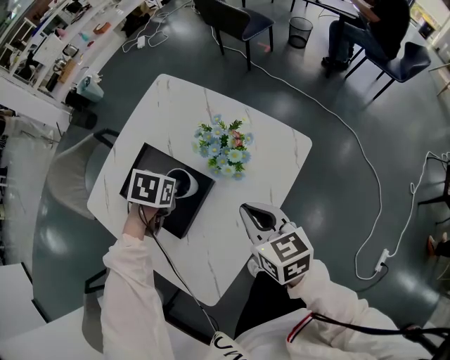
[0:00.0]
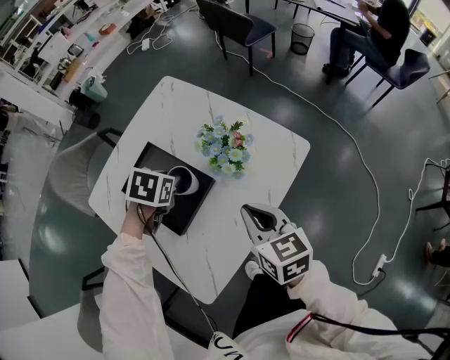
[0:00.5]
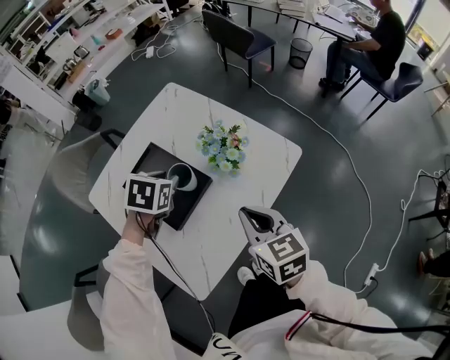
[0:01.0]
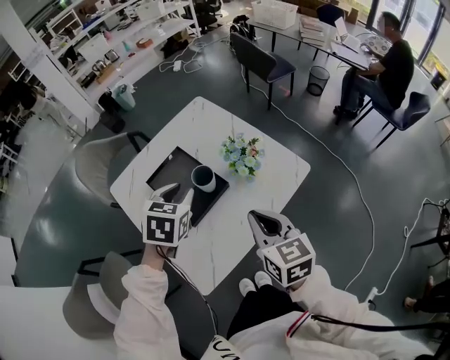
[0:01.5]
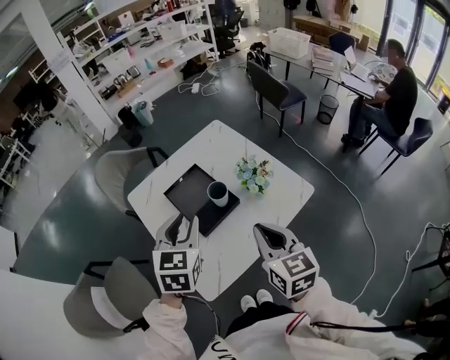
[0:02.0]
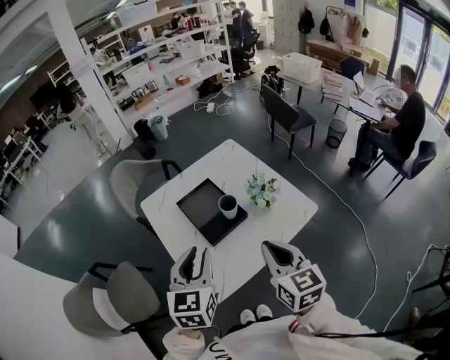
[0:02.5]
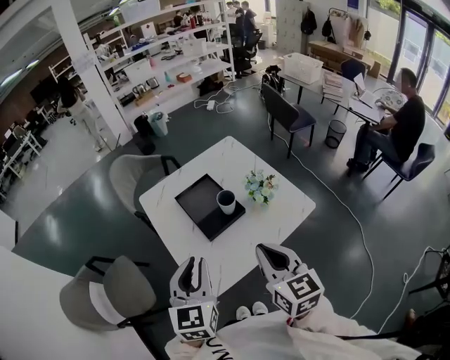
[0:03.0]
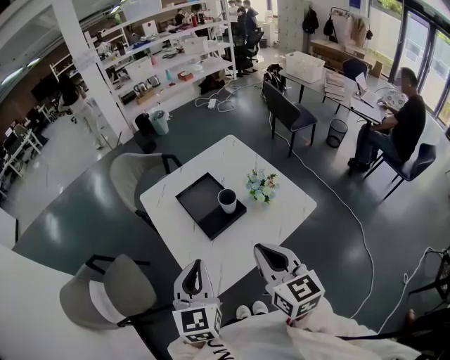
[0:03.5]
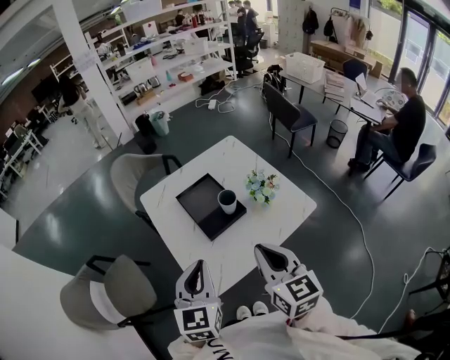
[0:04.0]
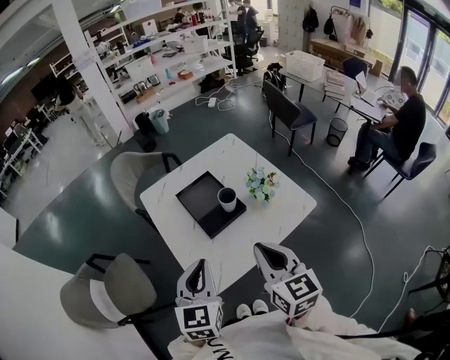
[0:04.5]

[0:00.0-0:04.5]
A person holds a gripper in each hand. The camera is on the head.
0:00.0 to 0:02.0: The left gripper heads upward and backward, covering roughly 30 cm, and angles its fingers upward, by approximately 50 degrees, while the right gripper is displaced upward and backward by roughly 20 cm.
0:02.0 to 0:04.5: The left gripper goes some 15 cm backward, and closes its fingers. Meanwhile the right gripper shifts about 5 cm backward.

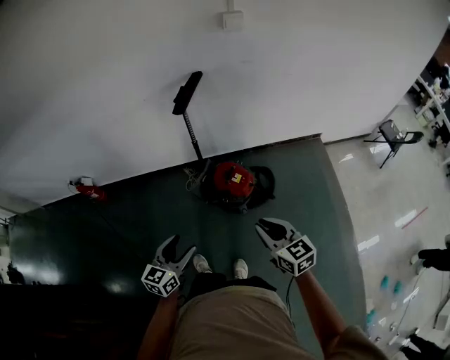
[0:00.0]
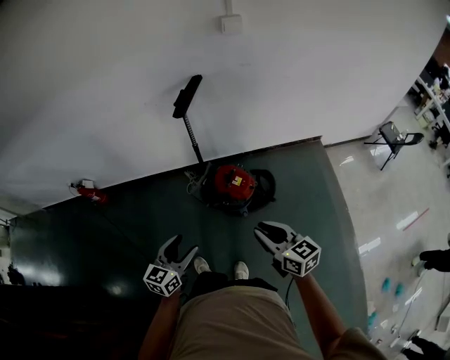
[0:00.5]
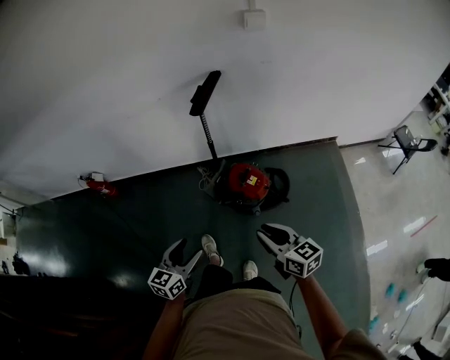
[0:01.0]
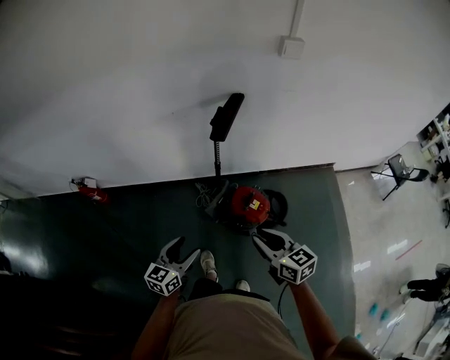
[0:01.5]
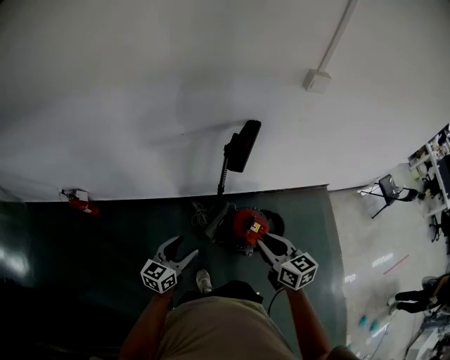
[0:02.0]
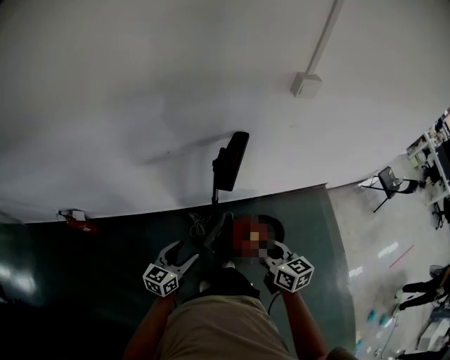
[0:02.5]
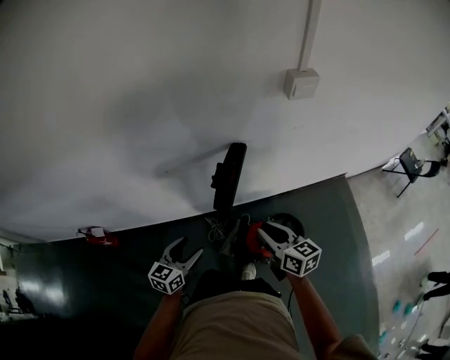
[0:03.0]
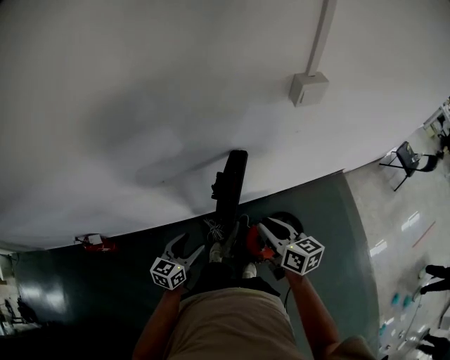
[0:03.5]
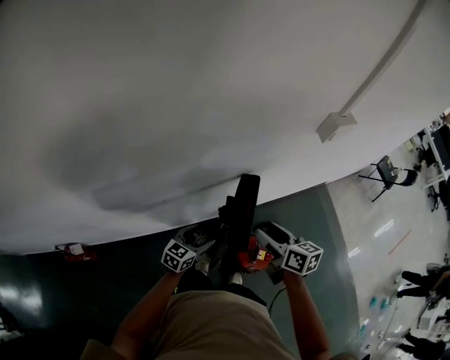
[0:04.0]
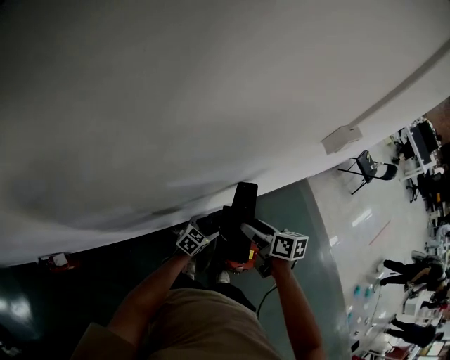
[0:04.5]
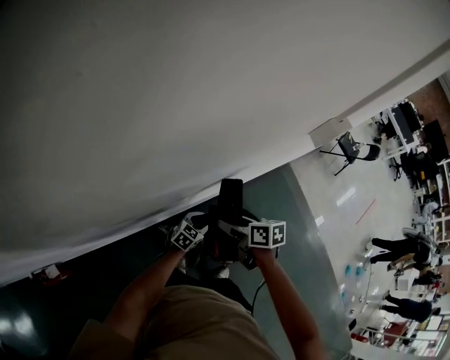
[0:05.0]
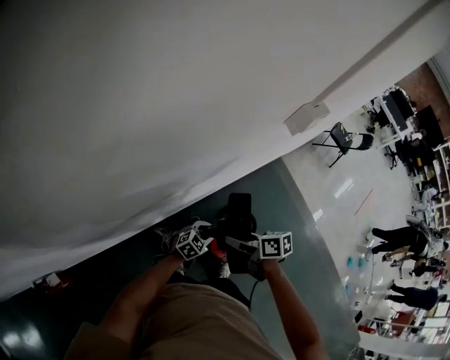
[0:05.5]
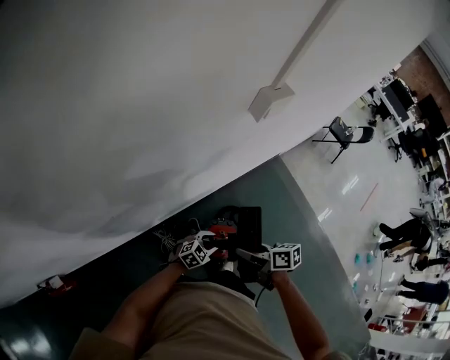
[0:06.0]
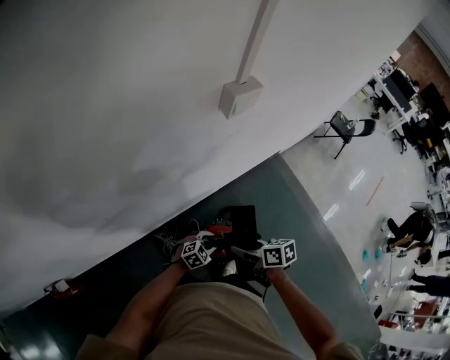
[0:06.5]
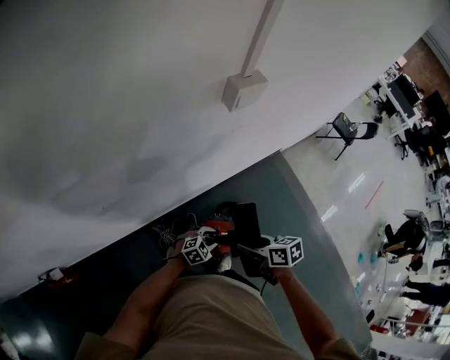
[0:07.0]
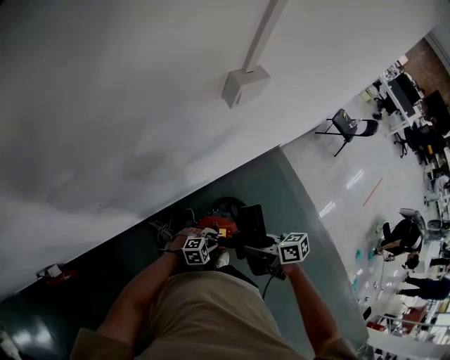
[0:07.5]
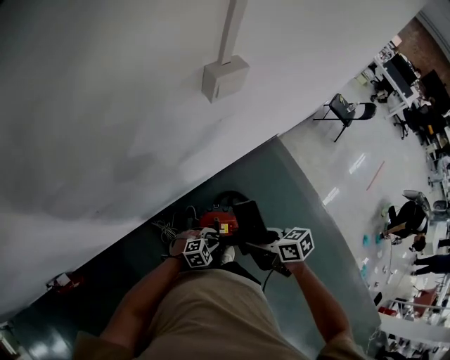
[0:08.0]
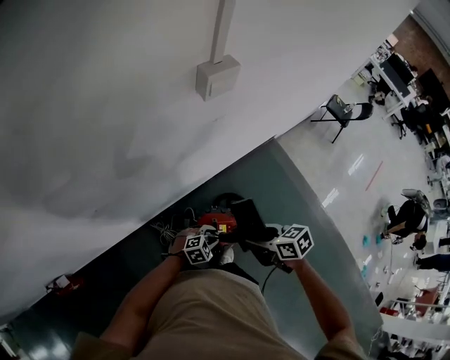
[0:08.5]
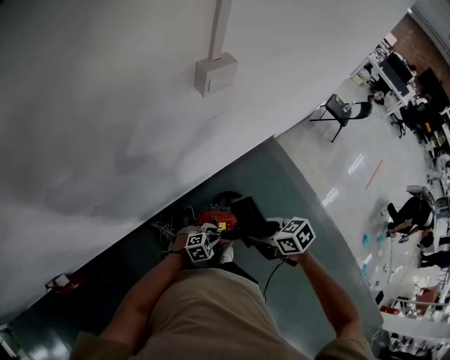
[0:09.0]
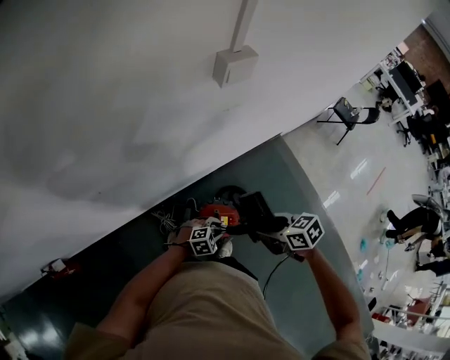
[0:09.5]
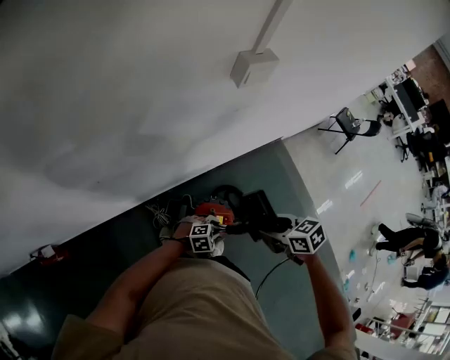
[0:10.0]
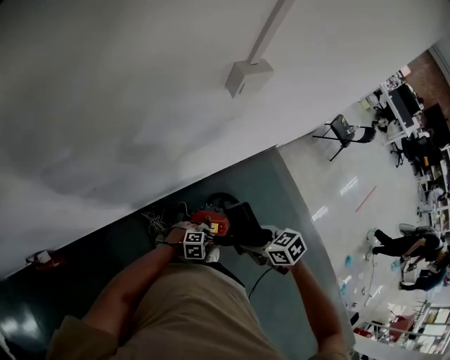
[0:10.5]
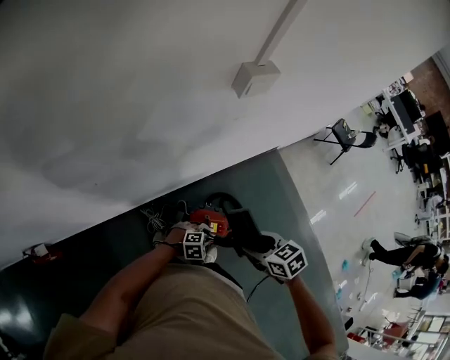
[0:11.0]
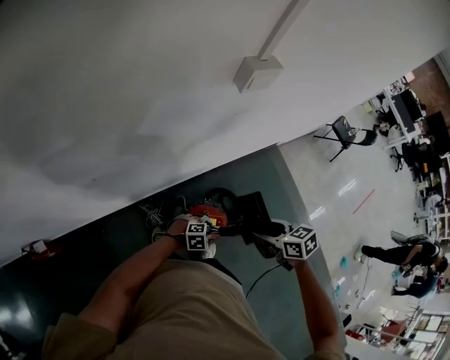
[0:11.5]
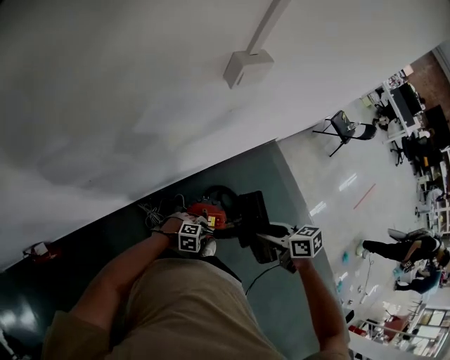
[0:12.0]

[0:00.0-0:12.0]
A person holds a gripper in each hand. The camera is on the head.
0:00.0 to 0:02.0: The two grippers go about 30 cm forward and to the left.
0:02.0 to 0:04.0: The two grippers go some 35 cm forward. The left gripper changes its angle by about 30 degrees, while the right gripper turns by about 30 degrees, and opens up.
0:04.0 to 0:06.0: The right gripper ends up approximately 15 cm from where it was; the left gripper shifts by some 25 cm, and turns by about 50 degrees.
0:06.0 to 0:08.0: The left gripper moves some 10 cm; the right gripper shifts by roughly 10 cm, and swivels roughly 20 degrees.

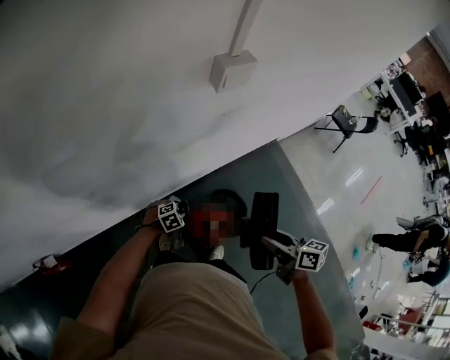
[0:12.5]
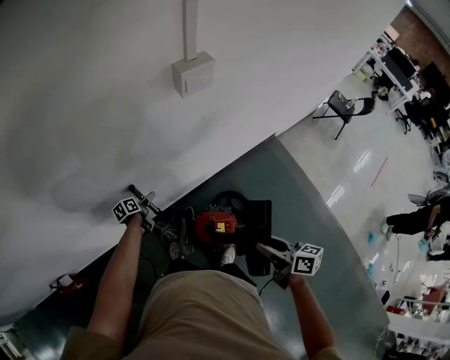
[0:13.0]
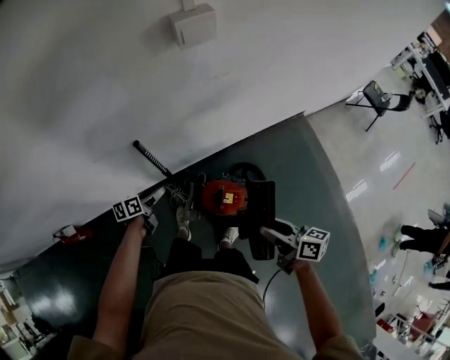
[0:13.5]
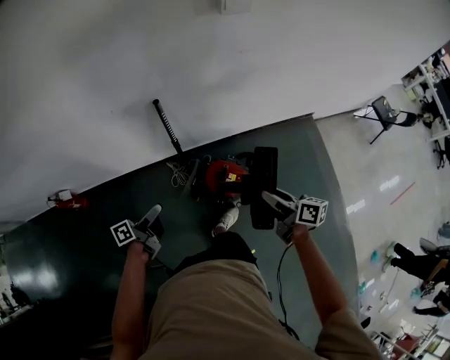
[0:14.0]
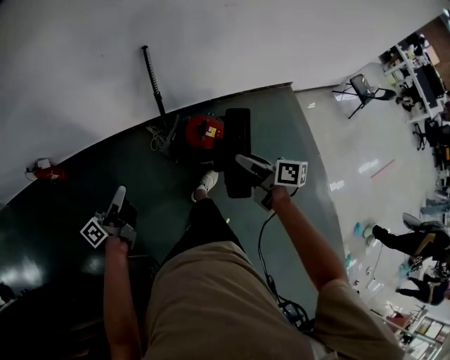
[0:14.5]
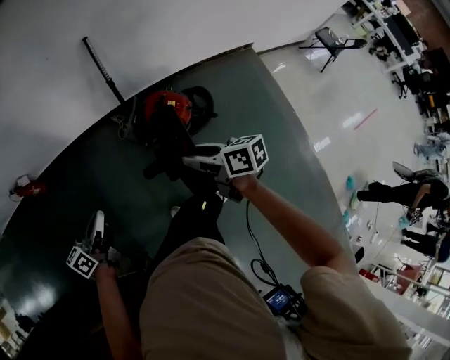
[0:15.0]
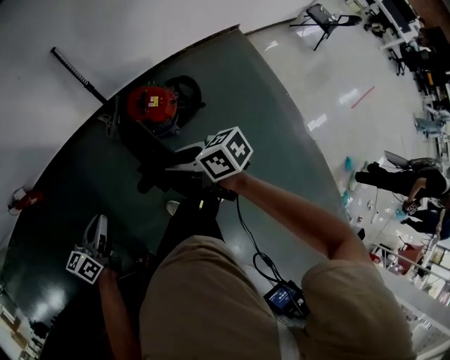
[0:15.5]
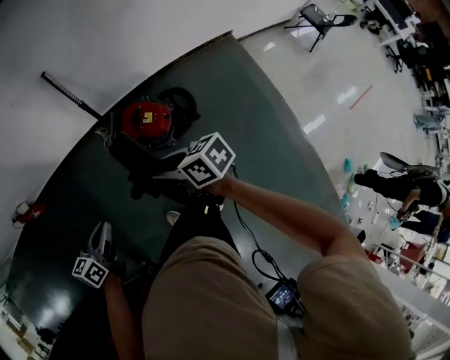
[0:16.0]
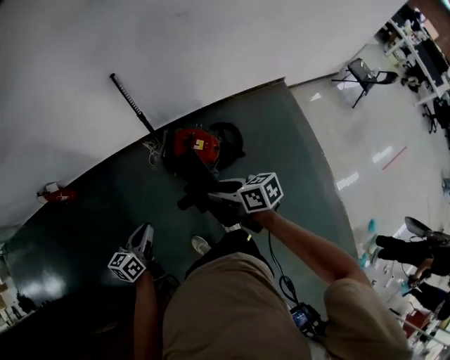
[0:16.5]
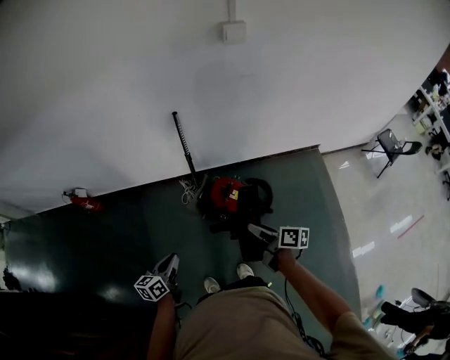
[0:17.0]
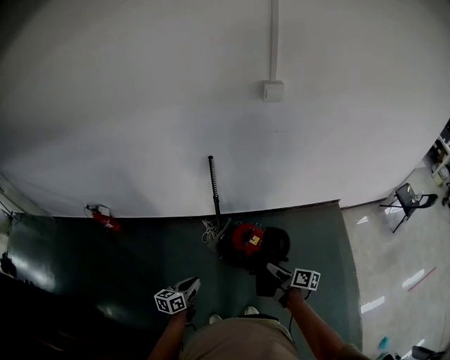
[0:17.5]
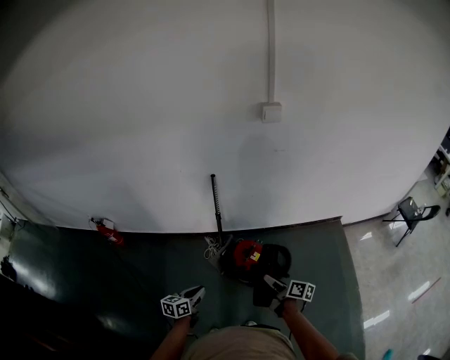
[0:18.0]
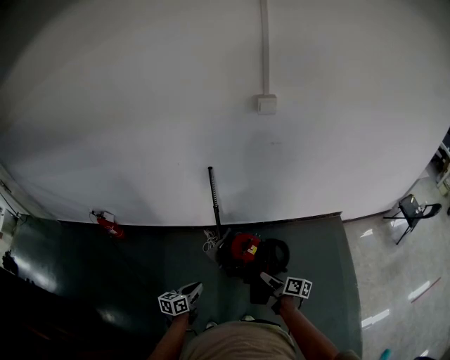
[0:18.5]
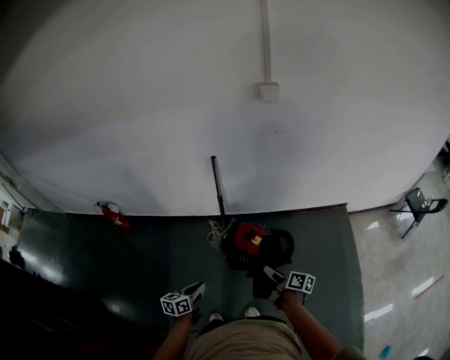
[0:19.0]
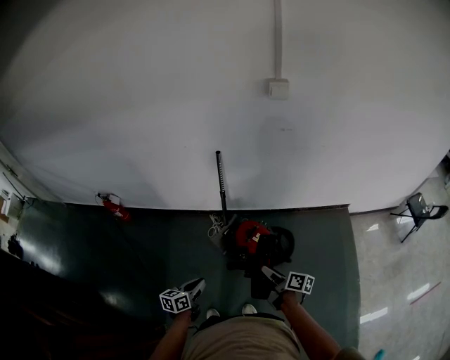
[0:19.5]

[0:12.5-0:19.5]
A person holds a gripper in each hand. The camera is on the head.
0:12.5 to 0:14.5: The right gripper moves roughly 25 cm, and changes its angle by some 20 degrees. Meanwhile the left gripper changes place by approximately 50 cm, tilts its fingers roughly 70 degrees upward, and opens, then closes again.
0:14.5 to 0:16.0: The right gripper shifts roughly 5 cm backward, and rotates some 30 degrees. Meanwhile the left gripper is displaced to the right and backward by about 15 cm, and tilts its fingers approximately 30 degrees downward.
0:16.0 to 0:17.5: The right gripper changes its angle by some 30 degrees.
0:17.5 to 0:19.5: The left gripper shifts by some 5 cm.

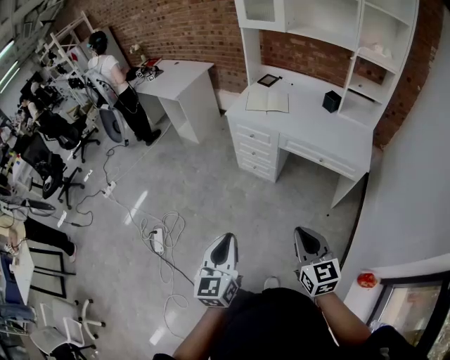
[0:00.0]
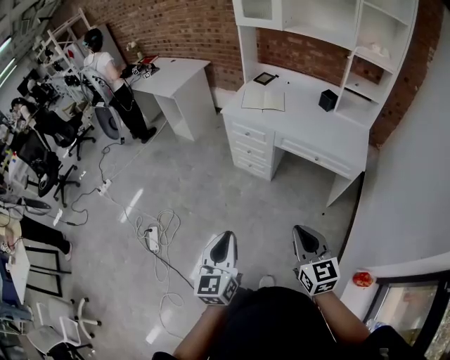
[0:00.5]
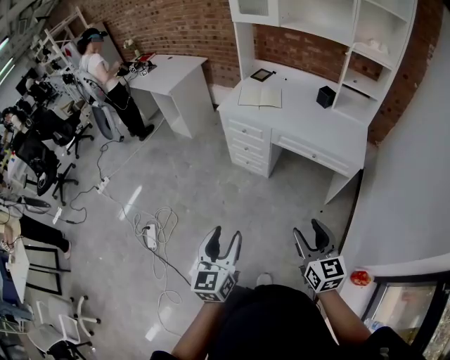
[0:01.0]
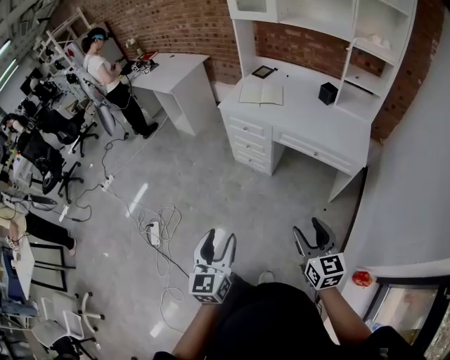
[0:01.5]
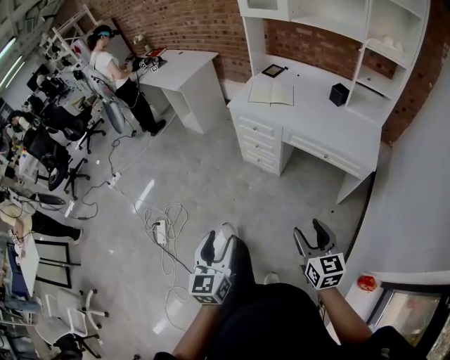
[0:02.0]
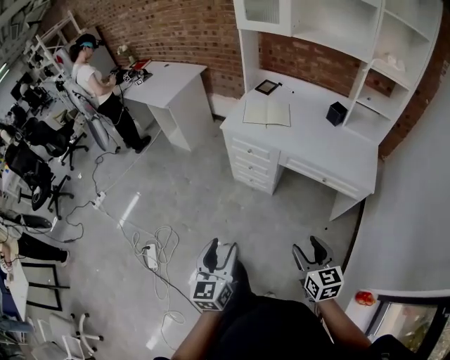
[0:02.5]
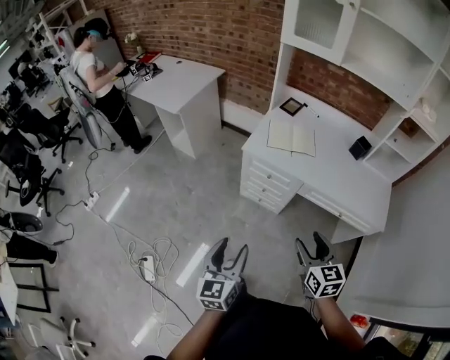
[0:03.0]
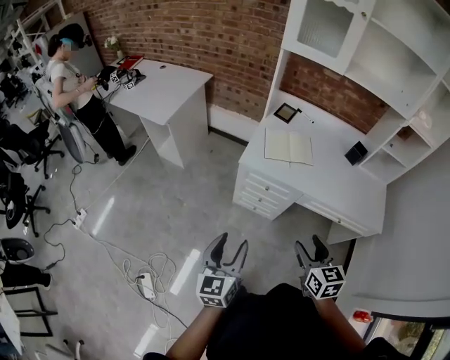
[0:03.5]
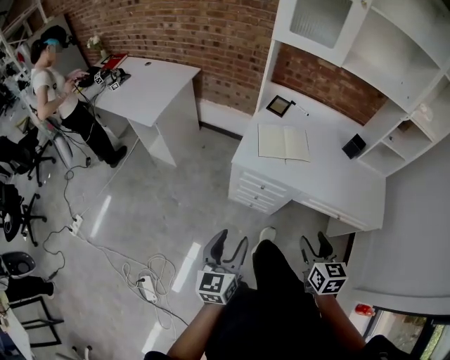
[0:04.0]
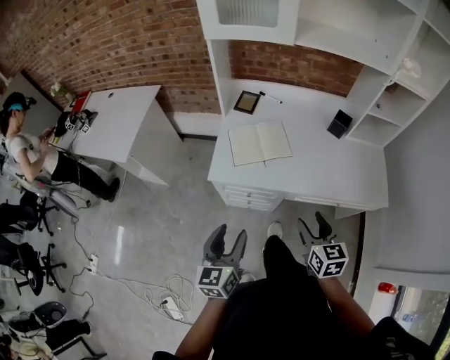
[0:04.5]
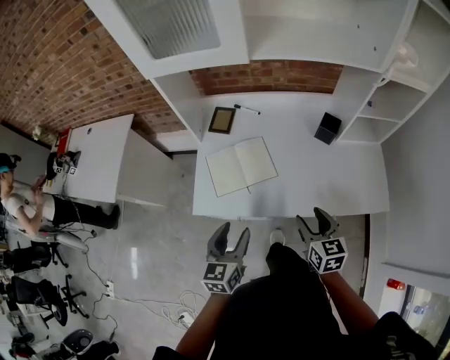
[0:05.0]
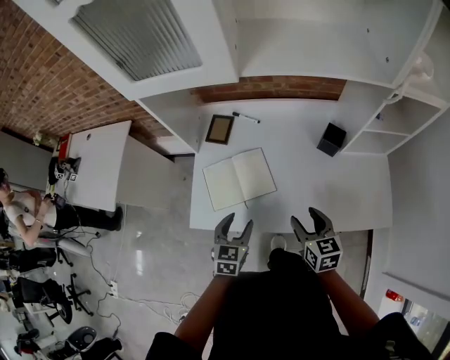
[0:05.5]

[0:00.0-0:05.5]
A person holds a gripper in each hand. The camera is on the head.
0:00.0 to 0:02.0: The right gripper goes roughly 5 cm to the right and downward, and opens up. The left gripper opens its fingers.
0:02.0 to 0:03.5: Both grippers are carried forward and to the left, approximately 50 cm.
0:03.5 to 0:05.5: Both grippers are carried forward and to the right, about 50 cm. The left gripper changes its angle by roughly 40 degrees.
